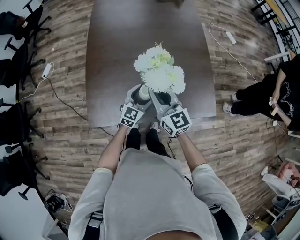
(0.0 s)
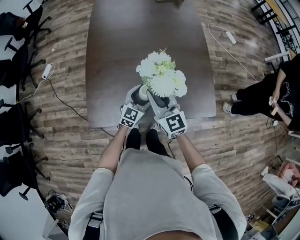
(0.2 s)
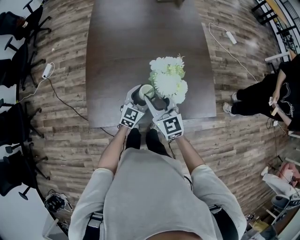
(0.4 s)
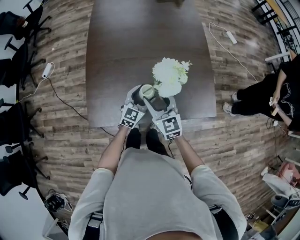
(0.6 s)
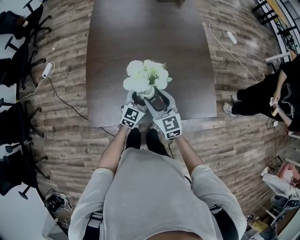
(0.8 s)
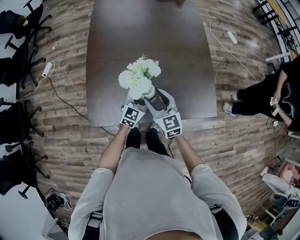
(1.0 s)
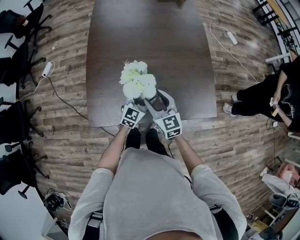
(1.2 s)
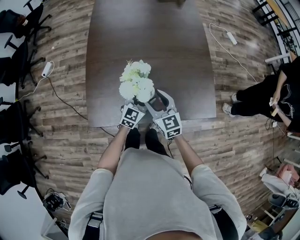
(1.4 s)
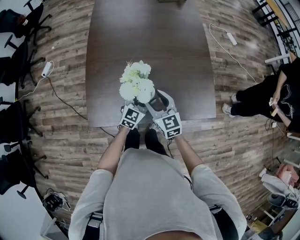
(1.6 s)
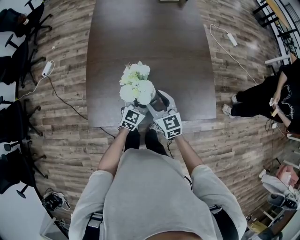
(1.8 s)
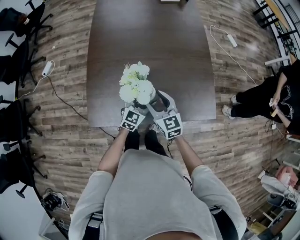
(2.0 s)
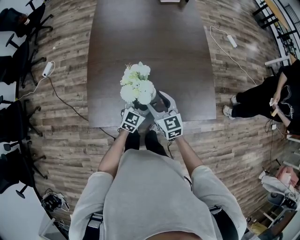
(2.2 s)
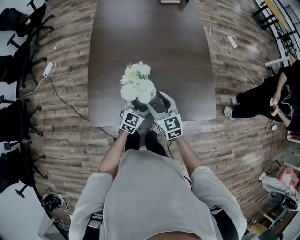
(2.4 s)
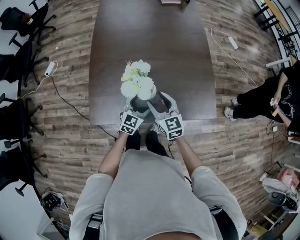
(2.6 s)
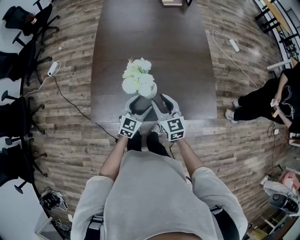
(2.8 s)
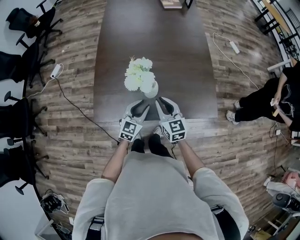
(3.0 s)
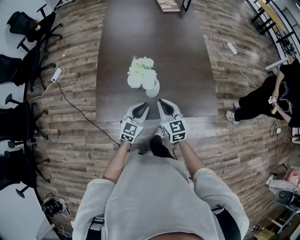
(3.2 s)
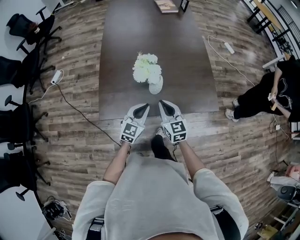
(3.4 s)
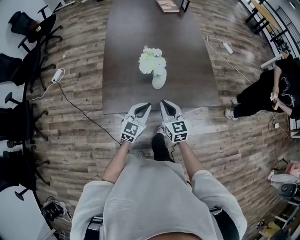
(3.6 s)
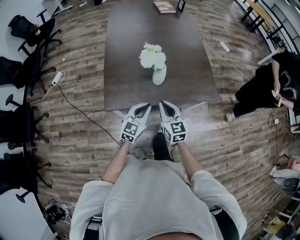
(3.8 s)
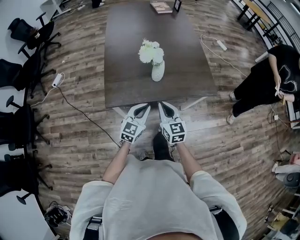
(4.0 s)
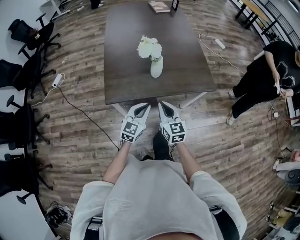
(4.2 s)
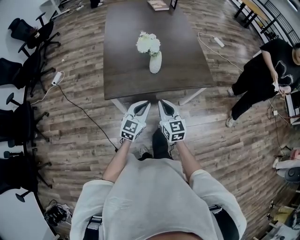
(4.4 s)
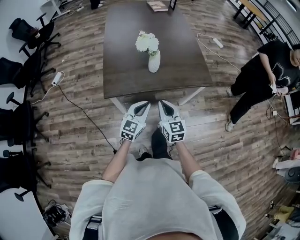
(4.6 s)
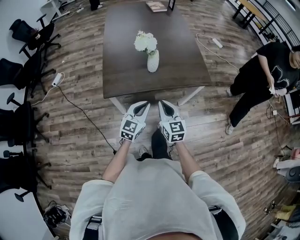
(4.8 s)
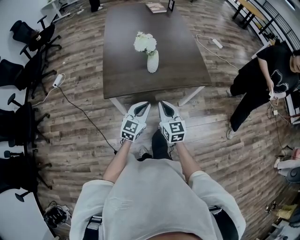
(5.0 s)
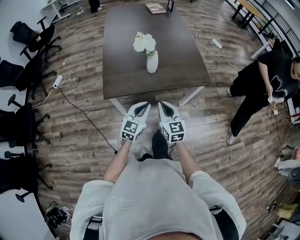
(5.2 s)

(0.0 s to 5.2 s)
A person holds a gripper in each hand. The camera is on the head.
0.0 s - 1.8 s: The right gripper is displaced downward by approximately 10 cm, and opens its fingers.
1.8 s - 3.4 s: The left gripper heads backward and upward, covering approximately 15 cm, and closes. Meanwhile the right gripper heads backward, covering approximately 10 cm, and closes.
3.4 s - 5.2 s: The grippers both shift backward by approximately 20 cm.

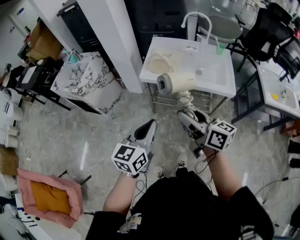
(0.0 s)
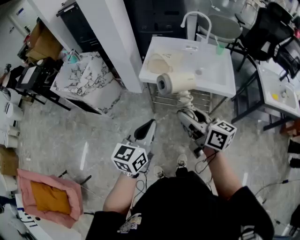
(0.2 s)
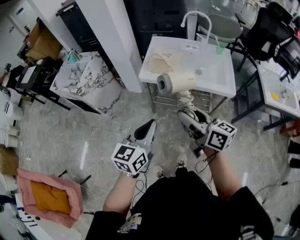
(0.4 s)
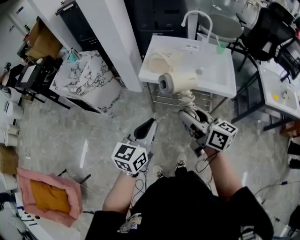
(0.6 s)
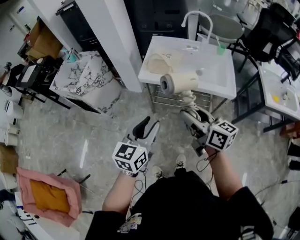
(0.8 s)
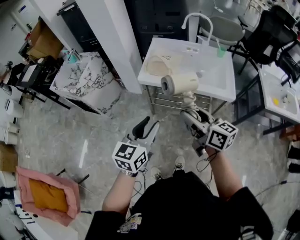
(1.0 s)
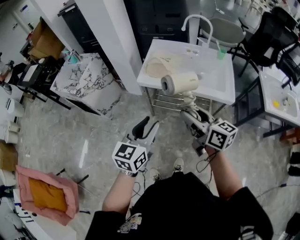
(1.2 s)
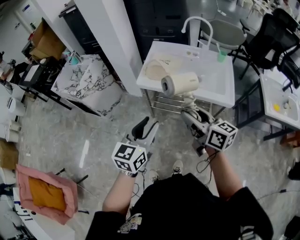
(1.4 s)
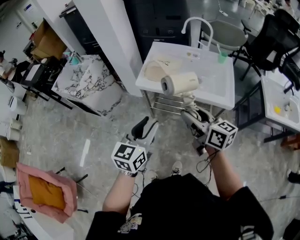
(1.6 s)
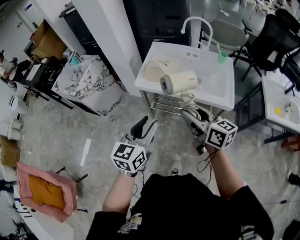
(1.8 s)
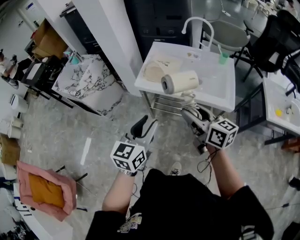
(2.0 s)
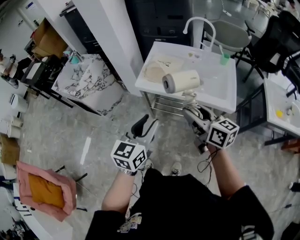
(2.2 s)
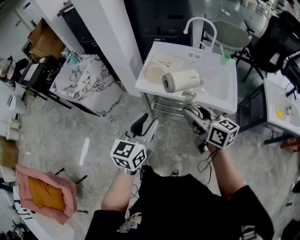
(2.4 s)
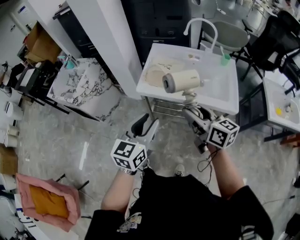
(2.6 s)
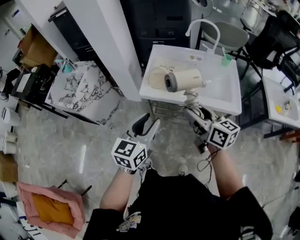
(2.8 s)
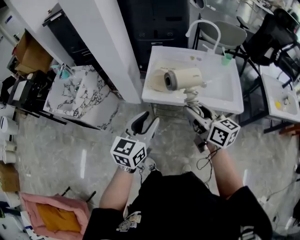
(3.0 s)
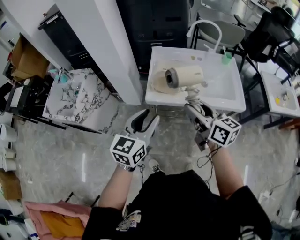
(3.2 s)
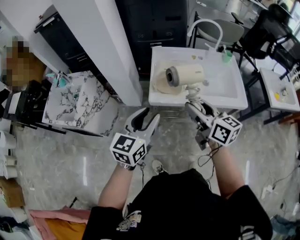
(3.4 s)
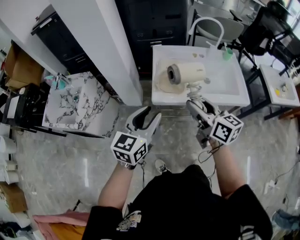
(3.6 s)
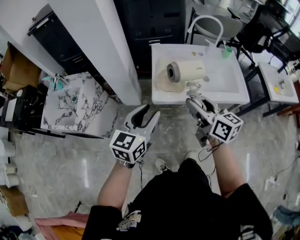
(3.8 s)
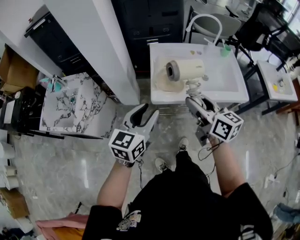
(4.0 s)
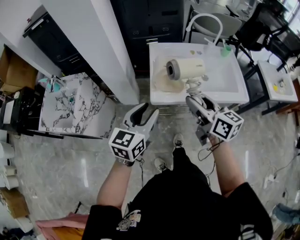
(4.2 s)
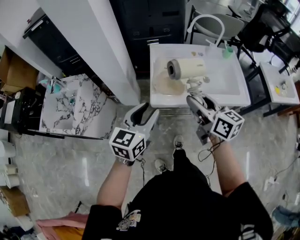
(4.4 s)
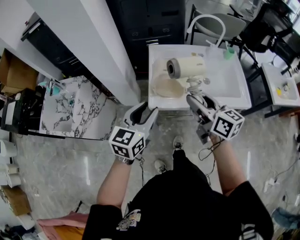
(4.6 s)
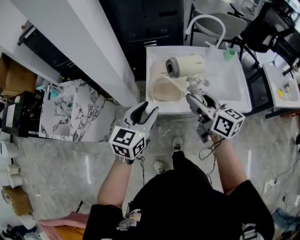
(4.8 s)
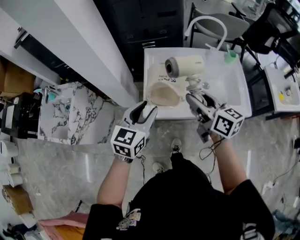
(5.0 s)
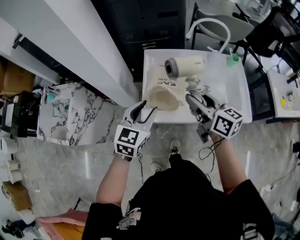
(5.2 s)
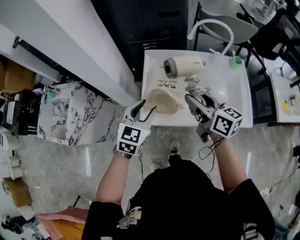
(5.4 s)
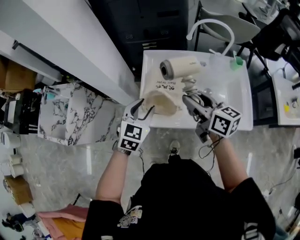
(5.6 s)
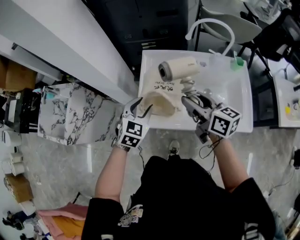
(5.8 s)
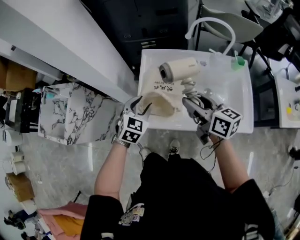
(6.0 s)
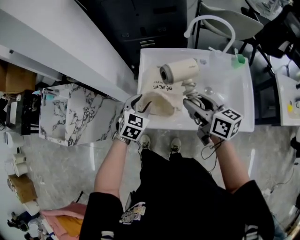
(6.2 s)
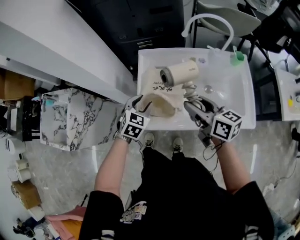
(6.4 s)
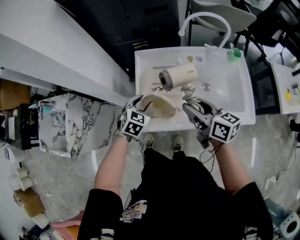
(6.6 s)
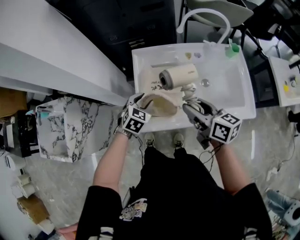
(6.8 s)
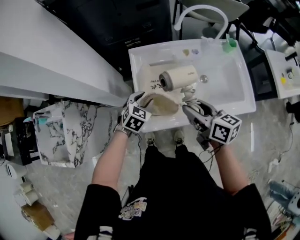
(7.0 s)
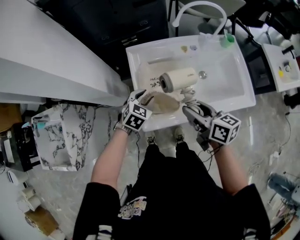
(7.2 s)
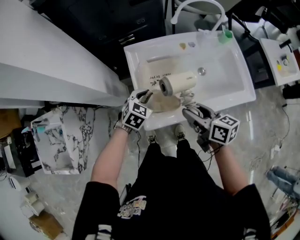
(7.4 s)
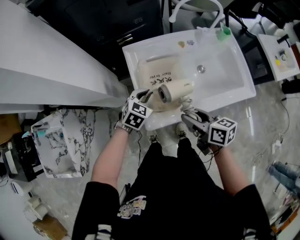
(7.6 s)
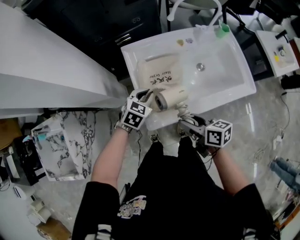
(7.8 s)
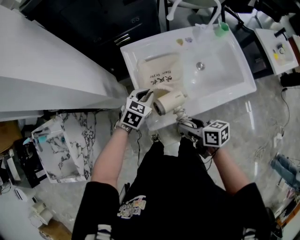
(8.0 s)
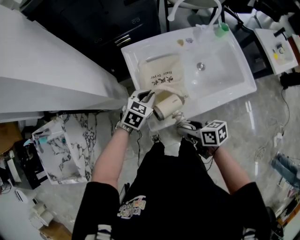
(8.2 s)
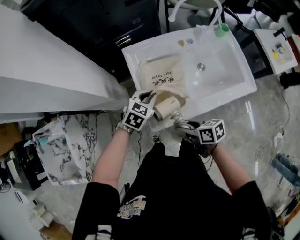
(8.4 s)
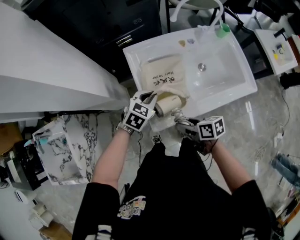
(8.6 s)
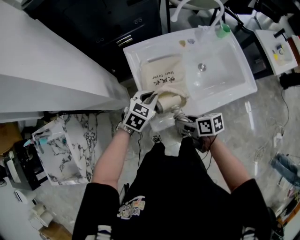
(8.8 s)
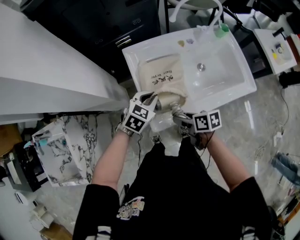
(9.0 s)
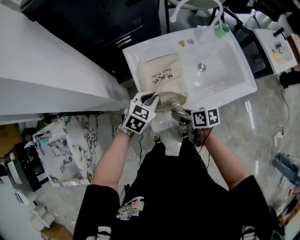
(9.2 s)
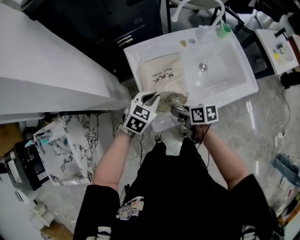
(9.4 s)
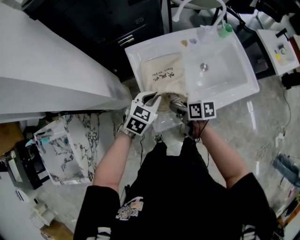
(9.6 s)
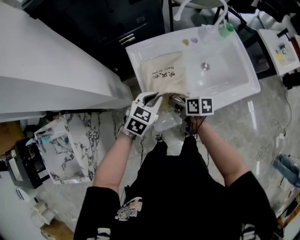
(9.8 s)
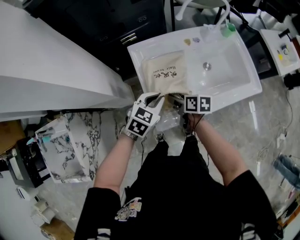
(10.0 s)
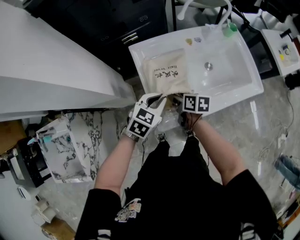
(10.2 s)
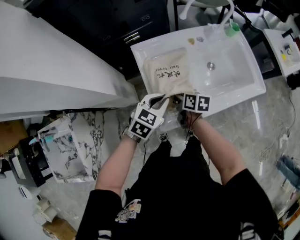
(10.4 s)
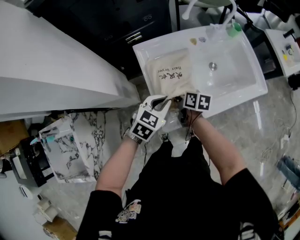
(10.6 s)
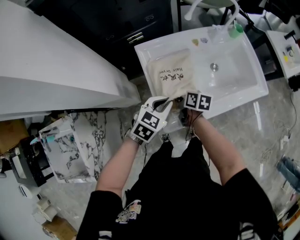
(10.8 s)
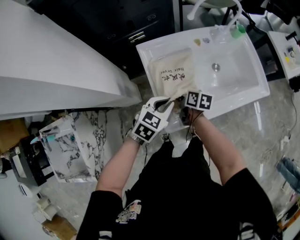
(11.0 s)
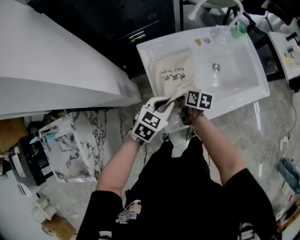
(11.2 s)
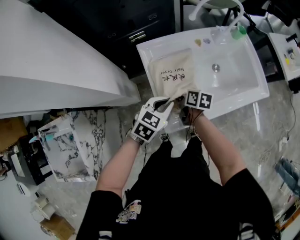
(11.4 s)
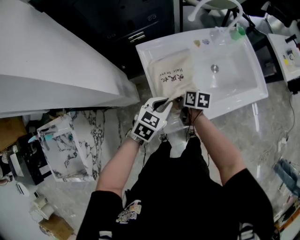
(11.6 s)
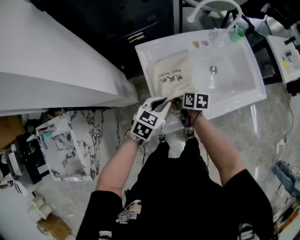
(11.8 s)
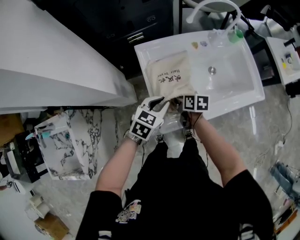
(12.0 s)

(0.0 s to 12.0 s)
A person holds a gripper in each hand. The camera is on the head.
0.0 s - 1.6 s: The two grippers go some 10 cm to the right and forward. The left gripper opens.
1.6 s - 3.0 s: Both grippers travel together forward and to the left, approximately 15 cm.
3.0 s - 4.4 s: The right gripper travels to the left and forward by some 10 cm. Meanwhile the left gripper travels forward and to the left by about 15 cm.
4.4 s - 6.0 s: The left gripper shifts about 25 cm forward and downward, and rotates approximately 40 degrees, while the right gripper is displaced forward, to the right and downward by approximately 20 cm.
6.0 s - 7.6 s: The left gripper moves downward and forward, approximately 10 cm, swivels some 30 degrees, and closes. The right gripper heads downward, backward and to the left, covering about 15 cm, and swivels some 20 degrees.
7.6 s - 9.0 s: The right gripper travels downward and to the left by roughly 10 cm, and turns by approximately 20 degrees.
9.0 s - 10.4 s: The right gripper goes approximately 10 cm forward.
10.4 s - 12.0 s: The grippers stay close to where they were, moving slightly.

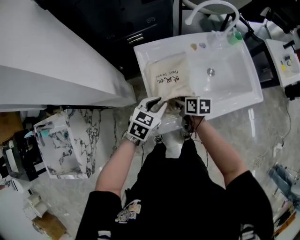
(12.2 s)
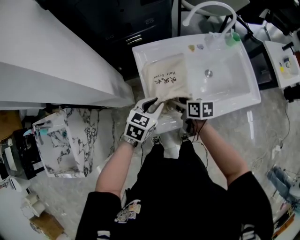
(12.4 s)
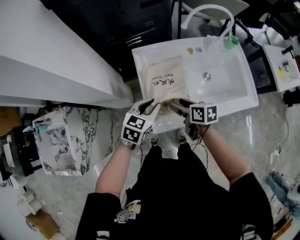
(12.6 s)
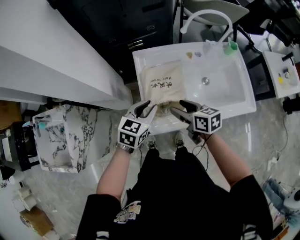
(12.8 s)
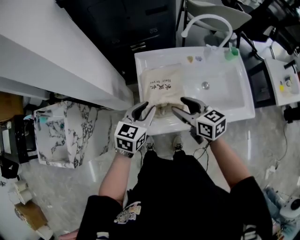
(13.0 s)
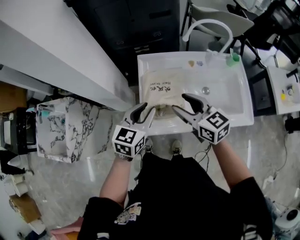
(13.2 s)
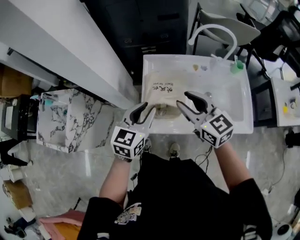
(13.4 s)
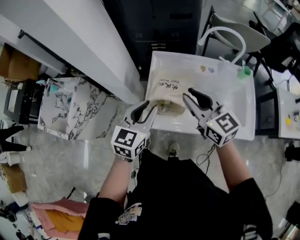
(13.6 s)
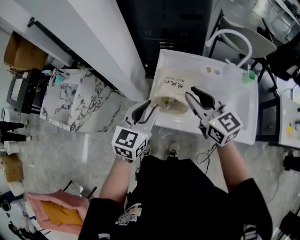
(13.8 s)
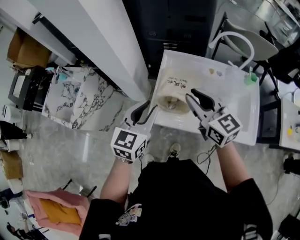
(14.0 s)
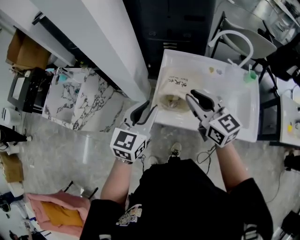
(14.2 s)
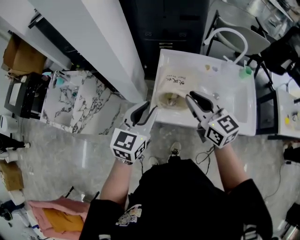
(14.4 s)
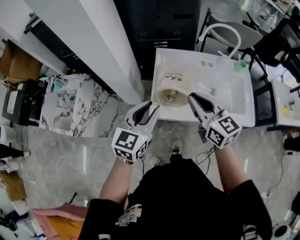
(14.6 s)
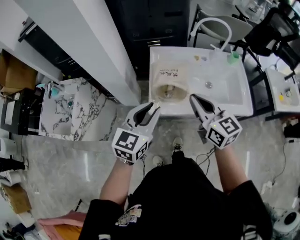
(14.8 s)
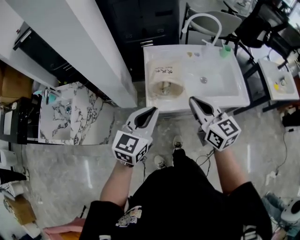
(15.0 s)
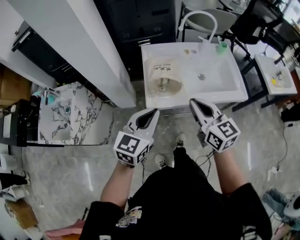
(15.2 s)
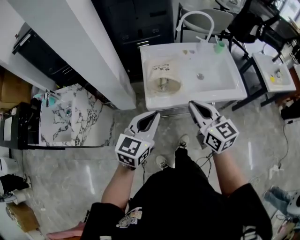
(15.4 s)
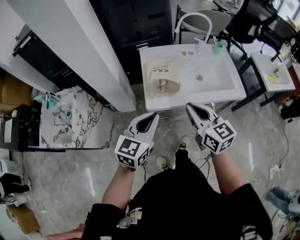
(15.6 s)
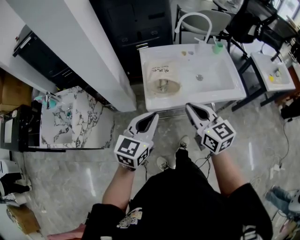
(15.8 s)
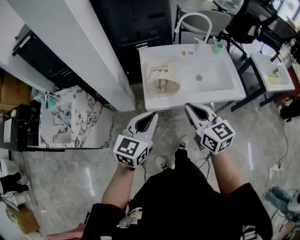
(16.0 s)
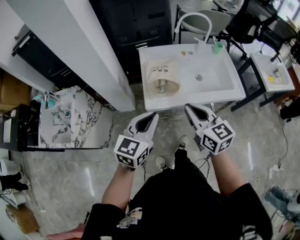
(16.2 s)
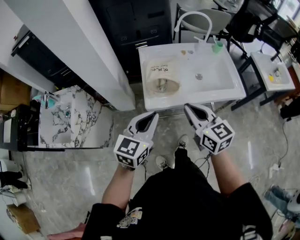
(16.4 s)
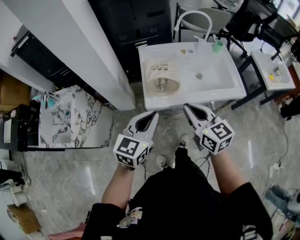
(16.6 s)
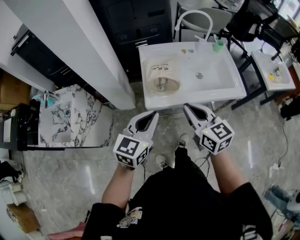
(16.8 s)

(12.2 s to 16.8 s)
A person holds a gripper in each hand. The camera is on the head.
12.2 s - 13.8 s: The left gripper is displaced upward by some 15 cm, and changes its angle by roughly 40 degrees. The right gripper travels upward by some 30 cm, angles its fingers upward, by roughly 30 degrees, and closes.
13.8 s - 15.2 s: The grippers both shift backward by roughly 15 cm. The left gripper turns by some 20 degrees, and closes. The right gripper changes its angle by approximately 20 degrees, and closes up.
15.2 s - 16.8 s: There are only small adjustments of the grippers.

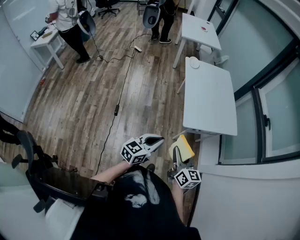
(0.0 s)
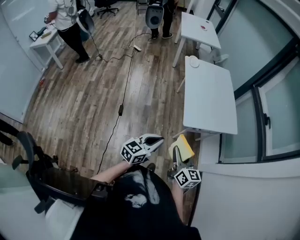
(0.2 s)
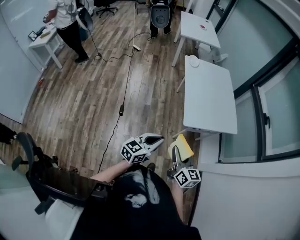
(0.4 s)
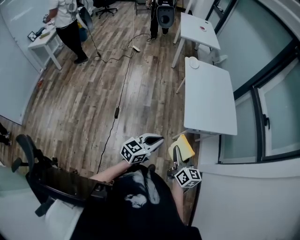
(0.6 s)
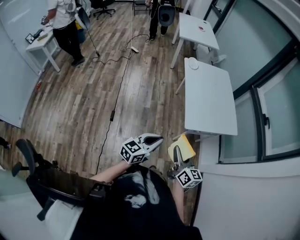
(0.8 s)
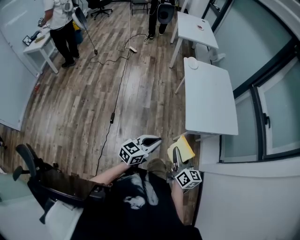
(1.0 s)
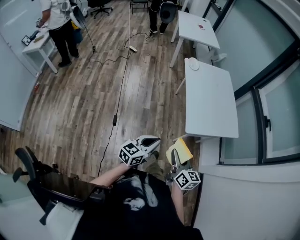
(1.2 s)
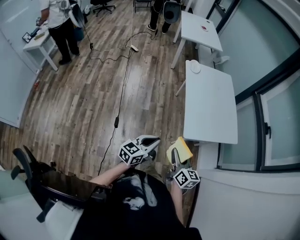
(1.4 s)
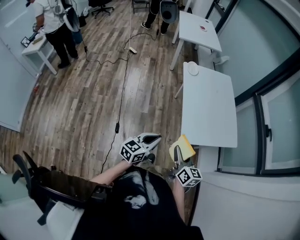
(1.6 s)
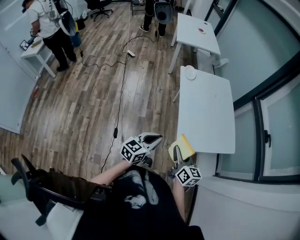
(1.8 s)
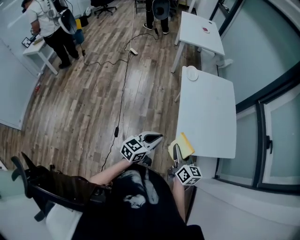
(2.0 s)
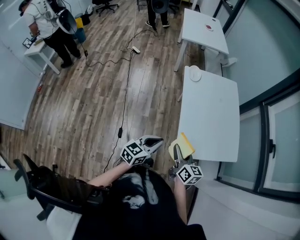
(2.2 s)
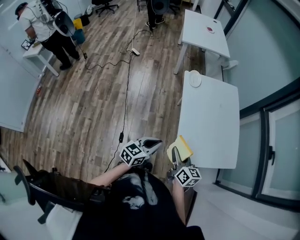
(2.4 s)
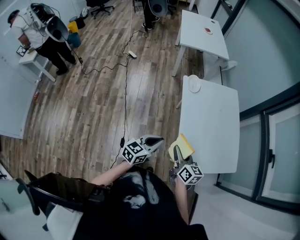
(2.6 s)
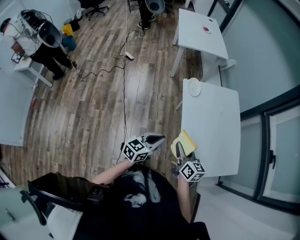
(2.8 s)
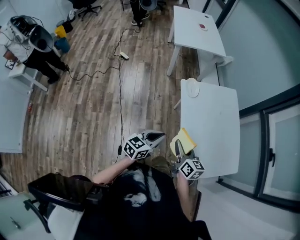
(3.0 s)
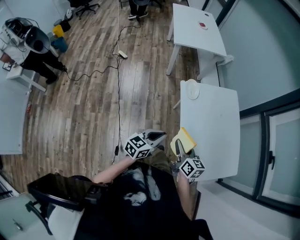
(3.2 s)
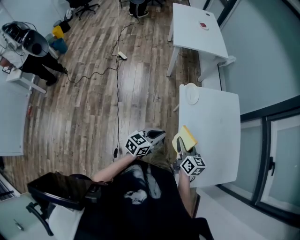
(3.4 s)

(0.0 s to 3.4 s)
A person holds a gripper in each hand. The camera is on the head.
0.0 s - 1.6 s: The two grippers go about 15 cm forward.
1.6 s - 3.4 s: Both grippers are carried forward, about 40 cm.
